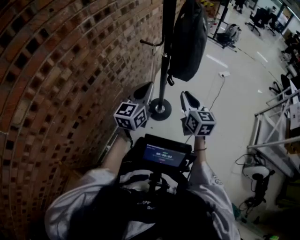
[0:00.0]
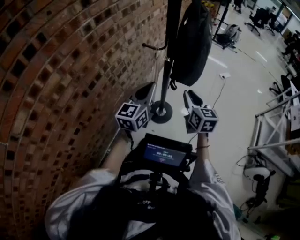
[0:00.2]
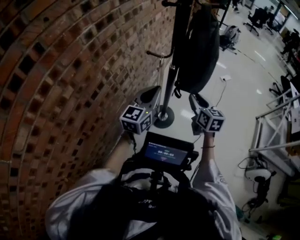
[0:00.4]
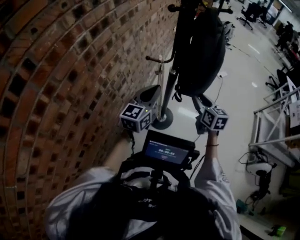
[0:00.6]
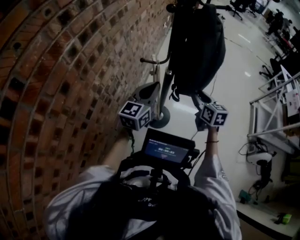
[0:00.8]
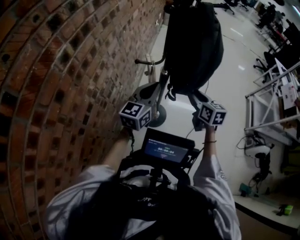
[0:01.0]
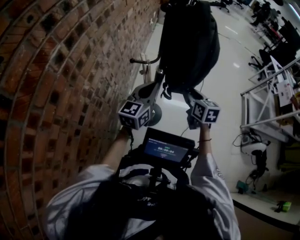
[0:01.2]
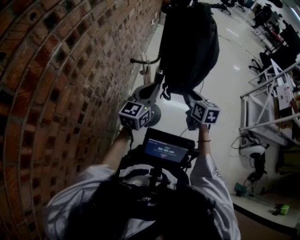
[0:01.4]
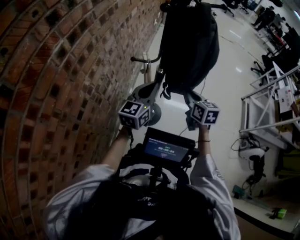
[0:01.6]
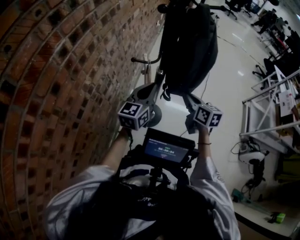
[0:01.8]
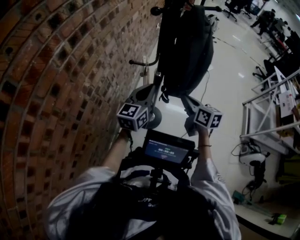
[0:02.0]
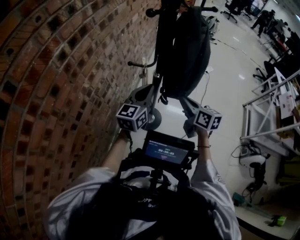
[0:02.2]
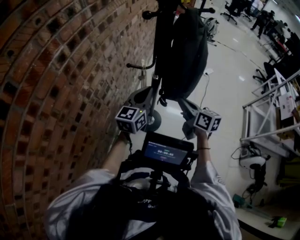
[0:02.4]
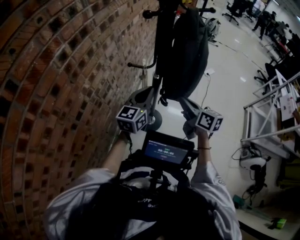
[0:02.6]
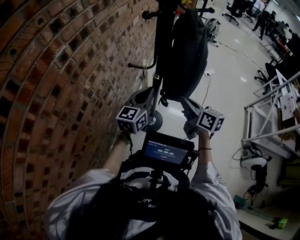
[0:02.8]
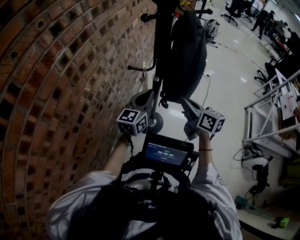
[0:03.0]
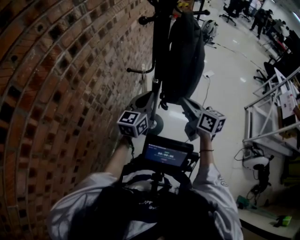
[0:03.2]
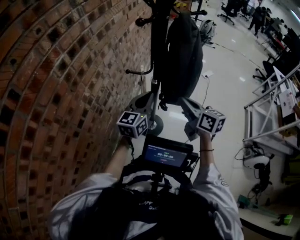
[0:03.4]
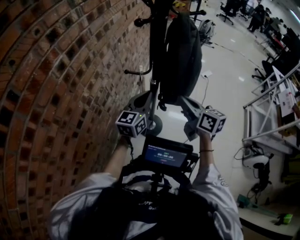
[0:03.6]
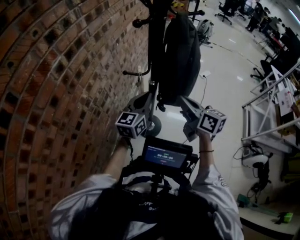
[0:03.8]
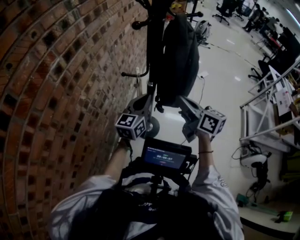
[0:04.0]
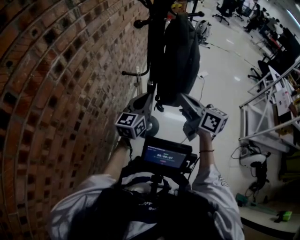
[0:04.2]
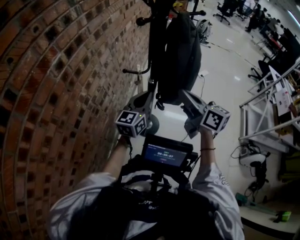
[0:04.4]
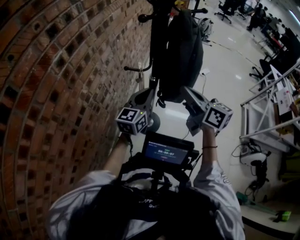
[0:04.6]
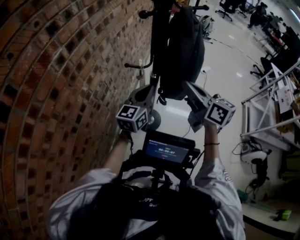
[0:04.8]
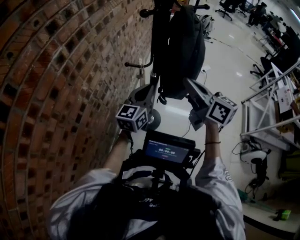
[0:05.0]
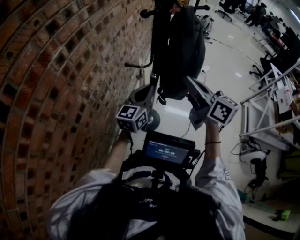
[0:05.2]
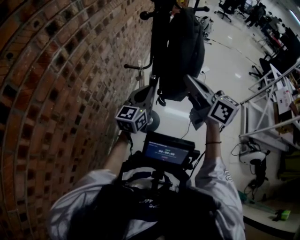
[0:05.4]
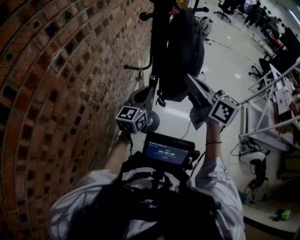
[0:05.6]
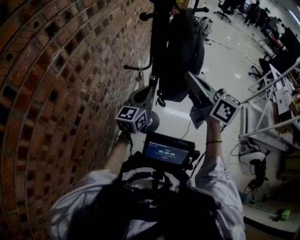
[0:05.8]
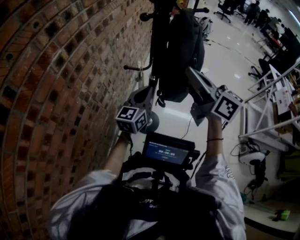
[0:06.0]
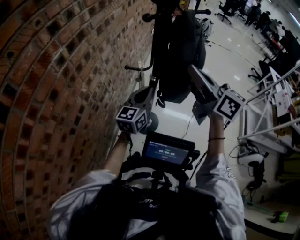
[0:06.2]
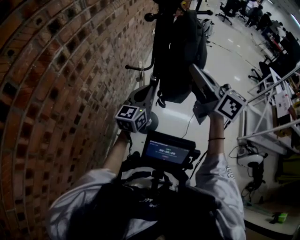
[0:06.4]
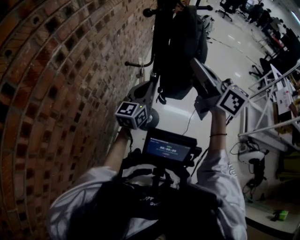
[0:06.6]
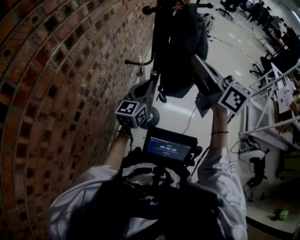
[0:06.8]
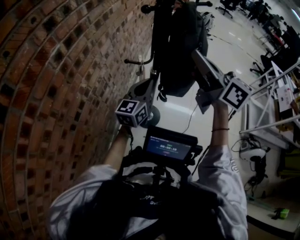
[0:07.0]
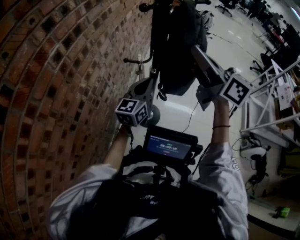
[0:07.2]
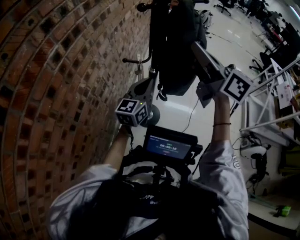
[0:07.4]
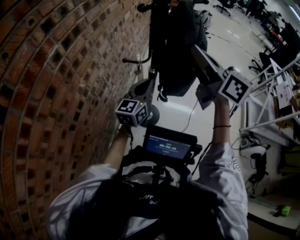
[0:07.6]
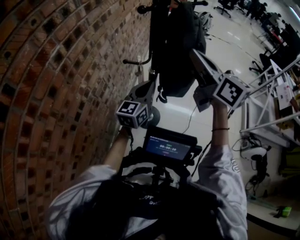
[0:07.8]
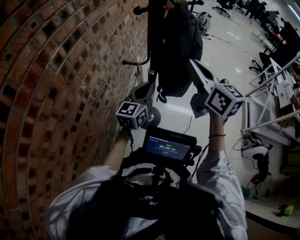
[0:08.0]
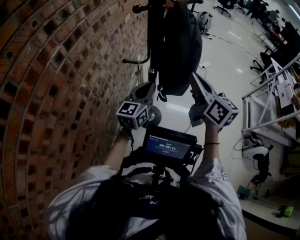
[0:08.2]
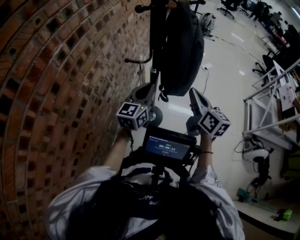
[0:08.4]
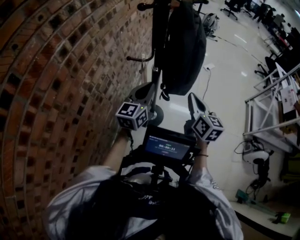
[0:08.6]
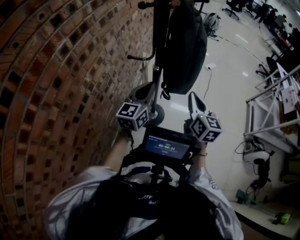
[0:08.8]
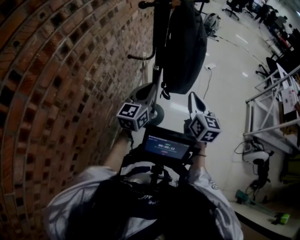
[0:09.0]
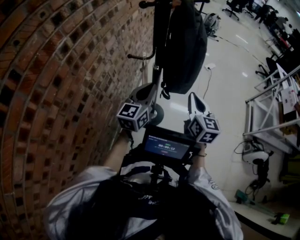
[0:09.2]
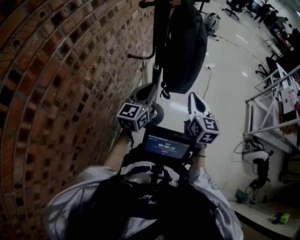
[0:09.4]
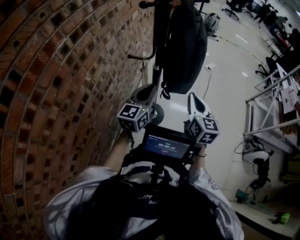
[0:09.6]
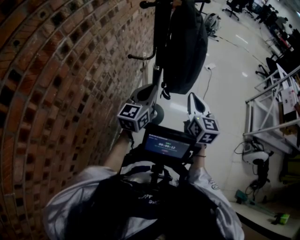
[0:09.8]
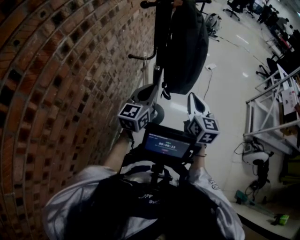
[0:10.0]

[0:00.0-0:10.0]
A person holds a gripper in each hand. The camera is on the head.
0:00.0 to 0:01.4: The two grippers go some 15 cm forward. The right gripper changes its angle by about 20 degrees. Meanwhile the left gripper changes its angle by approximately 20 degrees.
0:01.4 to 0:02.8: The right gripper goes some 5 cm upward, and changes its angle by approximately 30 degrees.
0:02.8 to 0:04.2: The right gripper moves upward, roughly 5 cm.
0:04.2 to 0:05.8: The right gripper shifts approximately 10 cm upward.
0:05.8 to 0:07.2: The right gripper travels upward by about 5 cm.
0:07.2 to 0:08.6: The right gripper is displaced downward by some 25 cm, and swivels about 30 degrees.
0:08.6 to 0:10.0: The grippers move only a little.

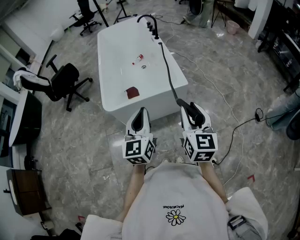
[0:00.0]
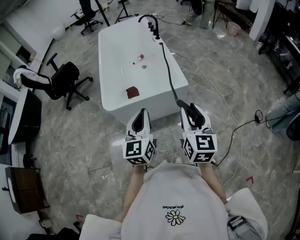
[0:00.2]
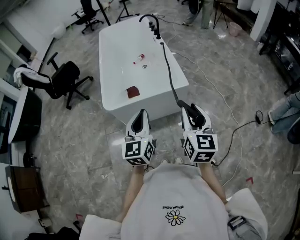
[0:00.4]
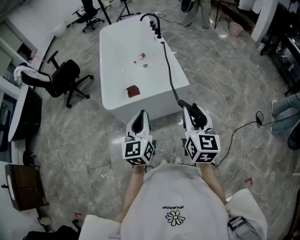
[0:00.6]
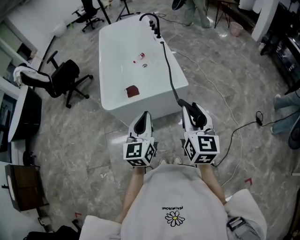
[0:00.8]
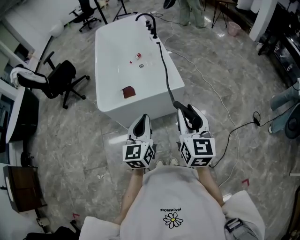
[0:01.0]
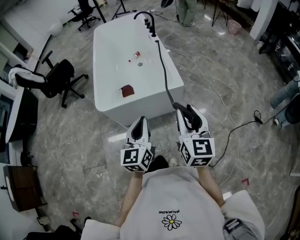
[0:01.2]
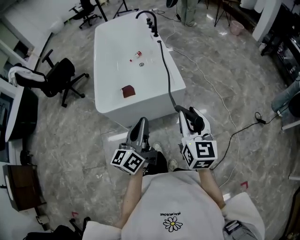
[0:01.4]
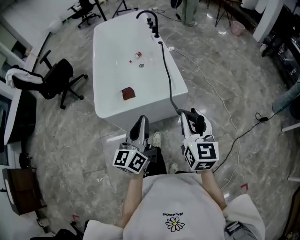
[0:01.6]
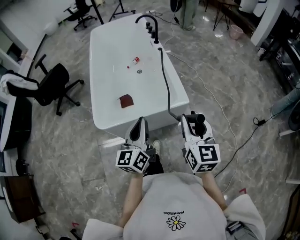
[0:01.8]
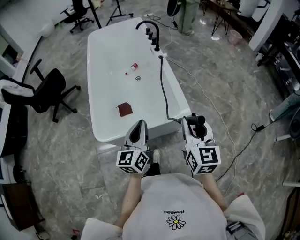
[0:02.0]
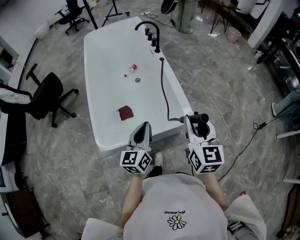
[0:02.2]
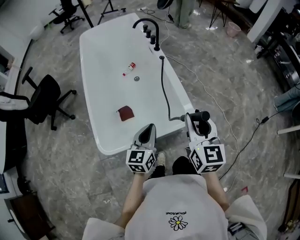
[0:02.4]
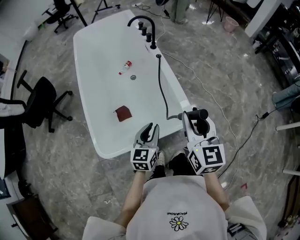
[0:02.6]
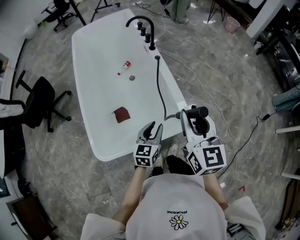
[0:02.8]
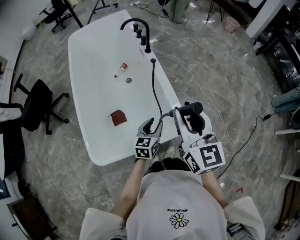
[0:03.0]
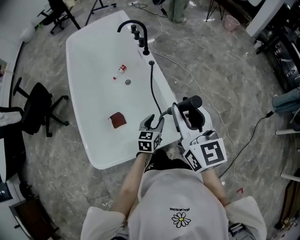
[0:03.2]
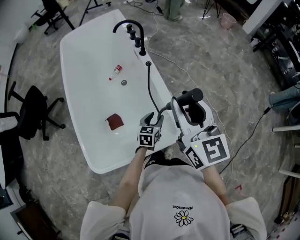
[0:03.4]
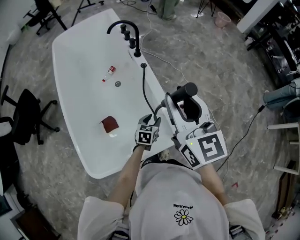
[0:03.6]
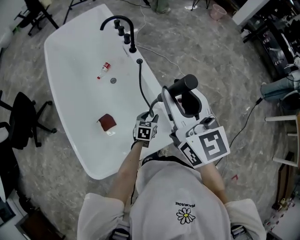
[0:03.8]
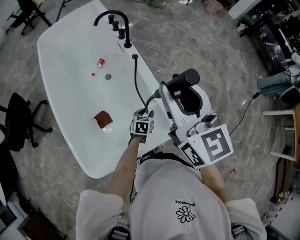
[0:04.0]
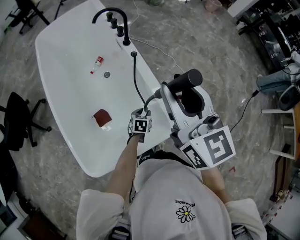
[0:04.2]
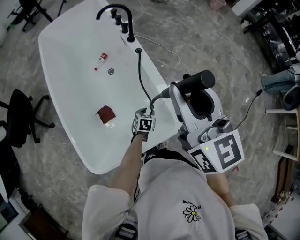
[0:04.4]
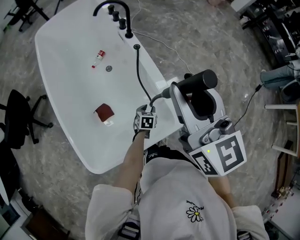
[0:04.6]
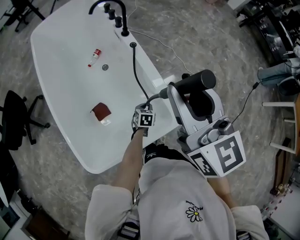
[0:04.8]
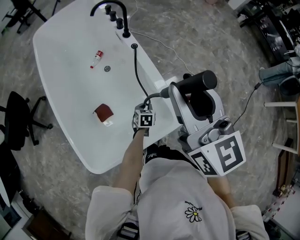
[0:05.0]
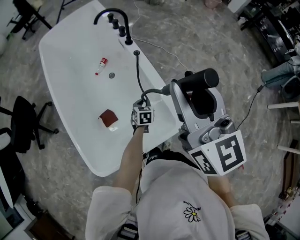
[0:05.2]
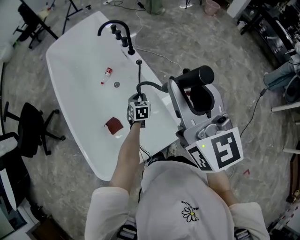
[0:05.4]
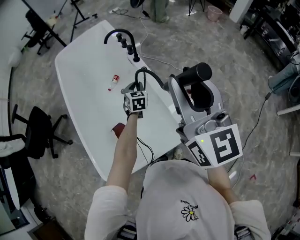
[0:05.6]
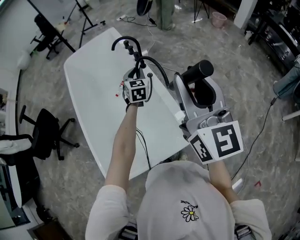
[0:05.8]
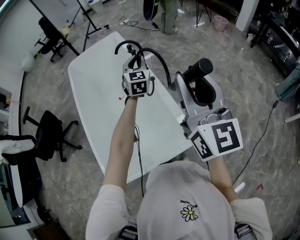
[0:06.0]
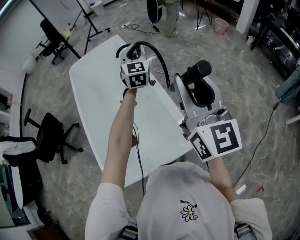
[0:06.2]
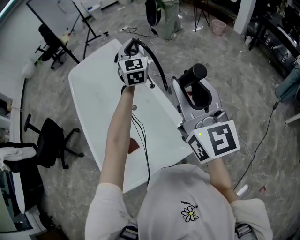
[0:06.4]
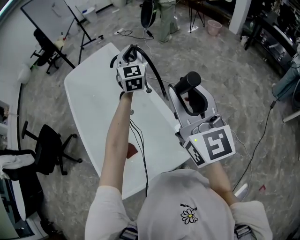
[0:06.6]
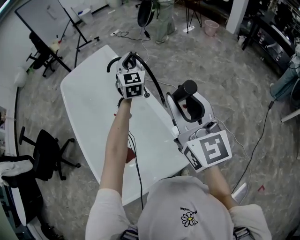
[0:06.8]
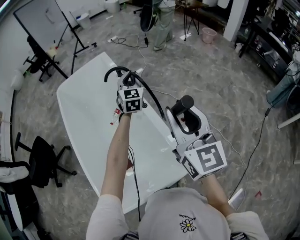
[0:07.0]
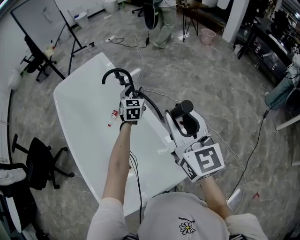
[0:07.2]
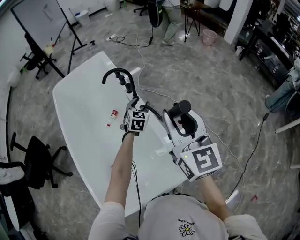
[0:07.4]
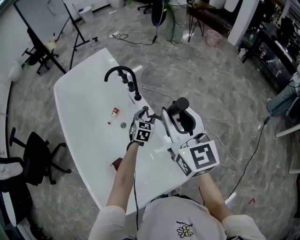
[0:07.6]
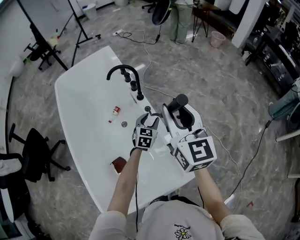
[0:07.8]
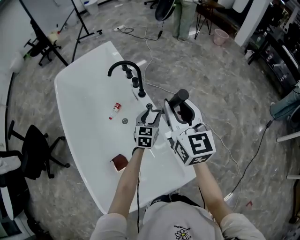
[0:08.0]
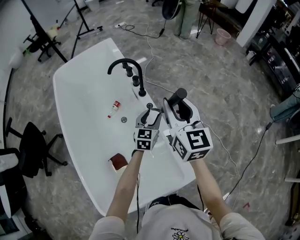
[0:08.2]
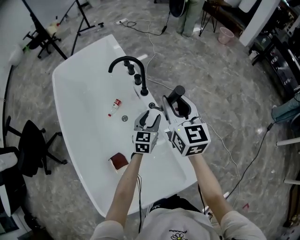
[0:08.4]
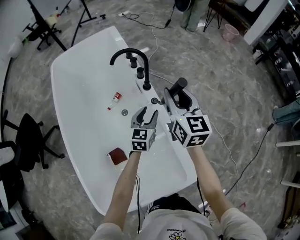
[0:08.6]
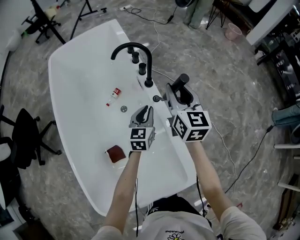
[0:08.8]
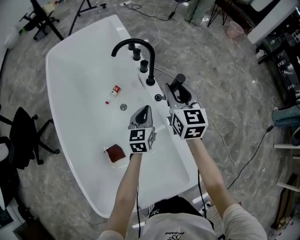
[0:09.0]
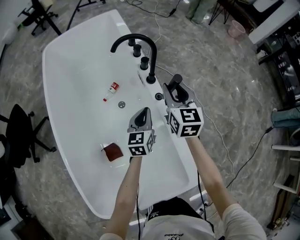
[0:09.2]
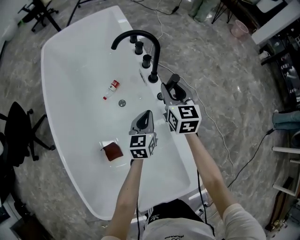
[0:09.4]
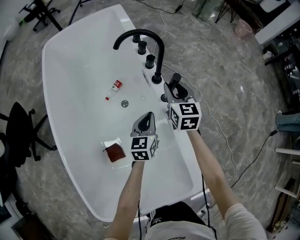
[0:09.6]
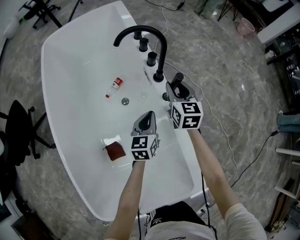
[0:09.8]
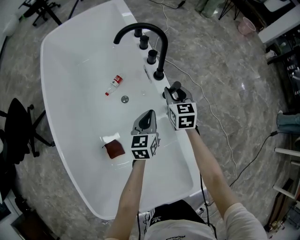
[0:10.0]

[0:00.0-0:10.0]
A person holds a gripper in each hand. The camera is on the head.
0:00.0 to 0:01.4: The left gripper swivels approximately 30 degrees. Meanwhile the right gripper moves about 5 cm.
0:01.4 to 0:02.8: The left gripper travels forward and downward by roughly 40 cm, turns by about 40 degrees, and opens its fingers. The right gripper shifts approximately 35 cm forward.
0:02.8 to 0:04.2: The right gripper moves forward, about 15 cm; the left gripper shifts about 25 cm downward and forward, and tilts its fingers about 30 degrees downward.
0:04.2 to 0:05.8: The right gripper heads upward and to the right, covering approximately 10 cm. The left gripper is displaced upward and forward by approximately 35 cm, and points its fingers some 30 degrees further upward.
0:05.8 to 0:07.2: The left gripper goes roughly 15 cm forward, reaches some 20 cm upward, then returns, and opens its fingers. Meanwhile the right gripper shifts about 15 cm forward and downward.
0:07.2 to 0:08.6: The left gripper travels downward and backward by approximately 15 cm. Meanwhile the right gripper travels forward and downward by approximately 25 cm.
0:08.6 to 0:10.0: The right gripper moves downward, some 25 cm, and changes its angle by approximately 20 degrees; the left gripper shifts approximately 10 cm downward and to the left, and closes its fingers.

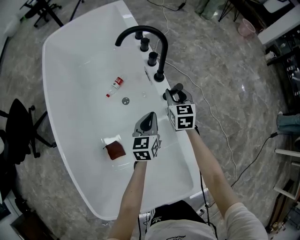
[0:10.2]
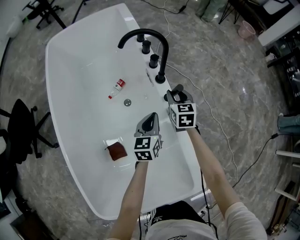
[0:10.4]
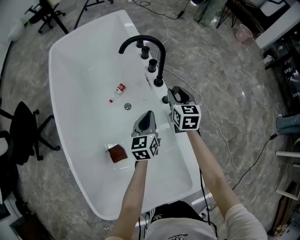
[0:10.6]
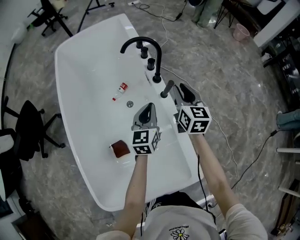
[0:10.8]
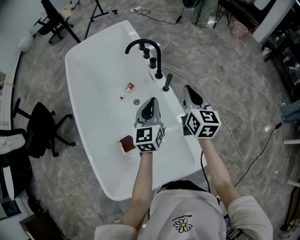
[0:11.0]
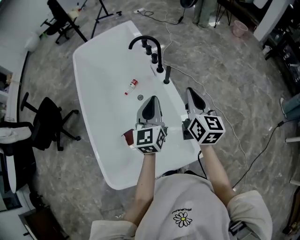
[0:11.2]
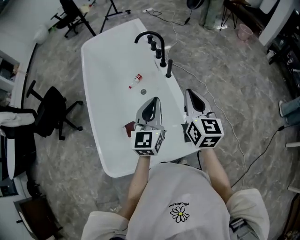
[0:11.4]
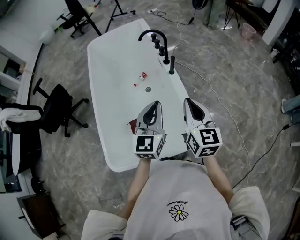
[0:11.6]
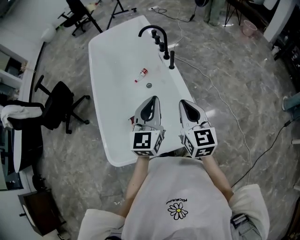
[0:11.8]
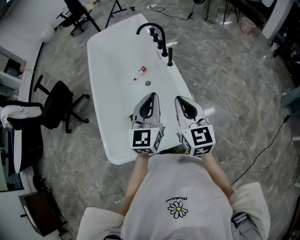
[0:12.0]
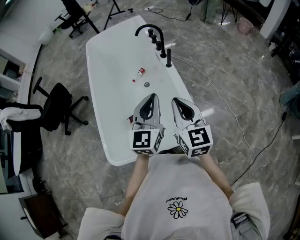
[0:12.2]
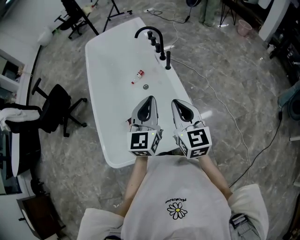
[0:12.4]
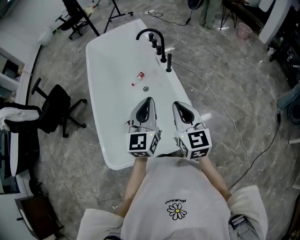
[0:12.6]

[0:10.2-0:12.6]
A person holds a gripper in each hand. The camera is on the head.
0:10.2 to 0:11.4: The left gripper is displaced upward and backward by roughly 40 cm, and turns by roughly 30 degrees. The right gripper is displaced backward and upward by roughly 50 cm, turns by about 30 degrees, and closes.
0:11.4 to 0:12.6: The left gripper shifts some 10 cm backward; the right gripper travels backward and to the left by about 10 cm.

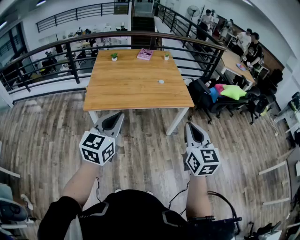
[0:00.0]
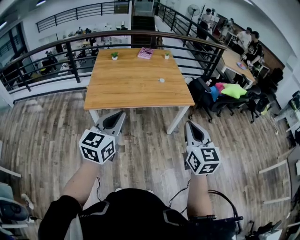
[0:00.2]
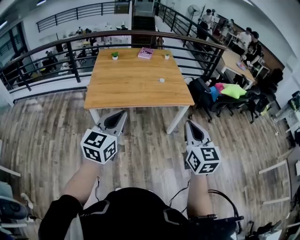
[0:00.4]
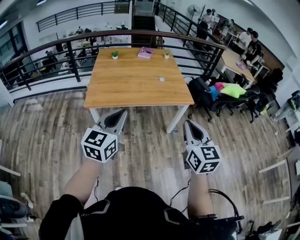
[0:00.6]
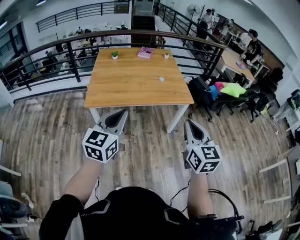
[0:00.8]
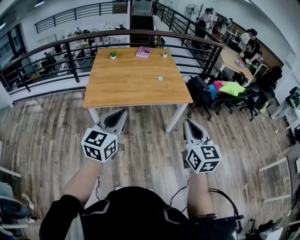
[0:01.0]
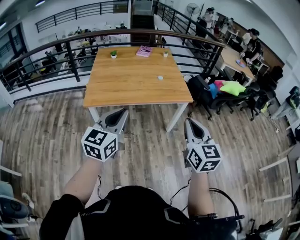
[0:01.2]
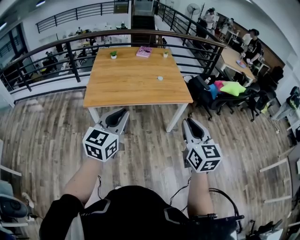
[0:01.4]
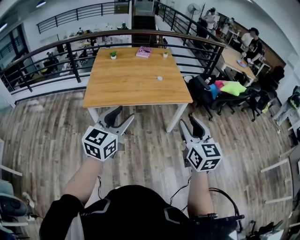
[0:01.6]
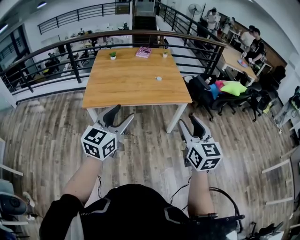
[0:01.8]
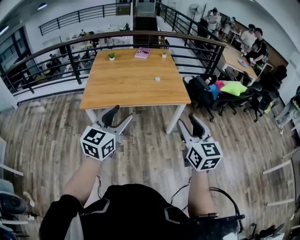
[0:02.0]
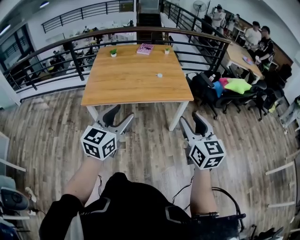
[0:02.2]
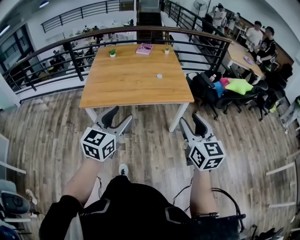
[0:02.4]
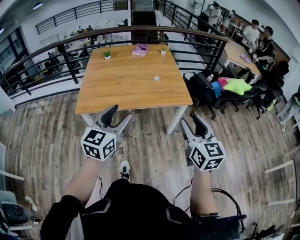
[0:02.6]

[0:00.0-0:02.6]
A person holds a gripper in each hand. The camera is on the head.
0:00.0 to 0:01.2: The grippers move only a little.
0:01.2 to 0:02.6: The two grippers go approximately 10 cm forward and to the right. The left gripper opens up, while the right gripper opens up.